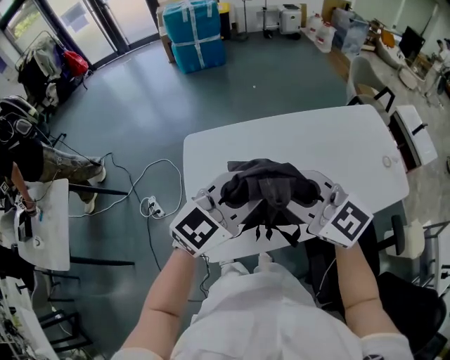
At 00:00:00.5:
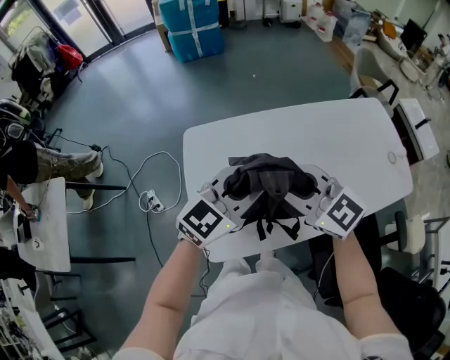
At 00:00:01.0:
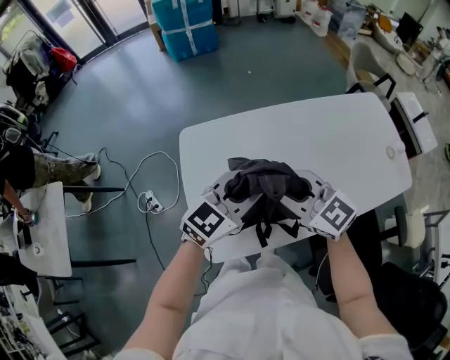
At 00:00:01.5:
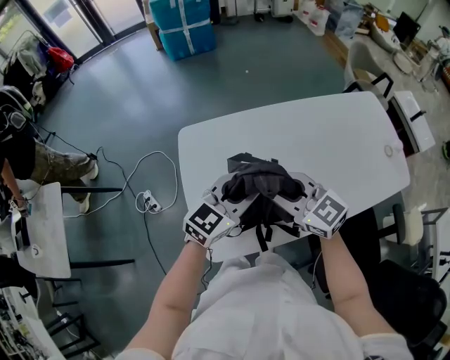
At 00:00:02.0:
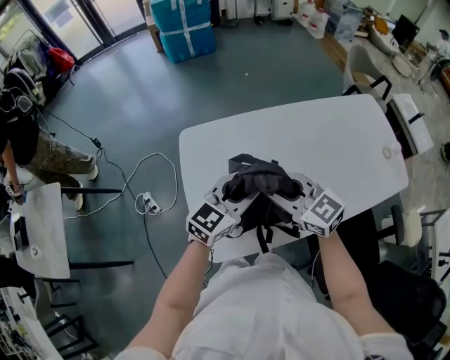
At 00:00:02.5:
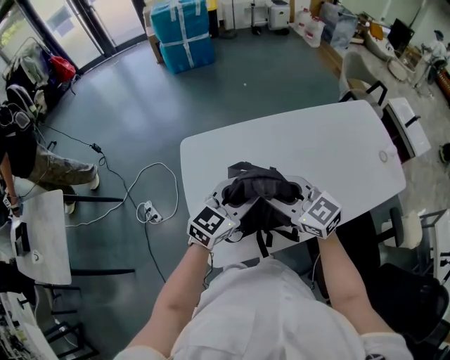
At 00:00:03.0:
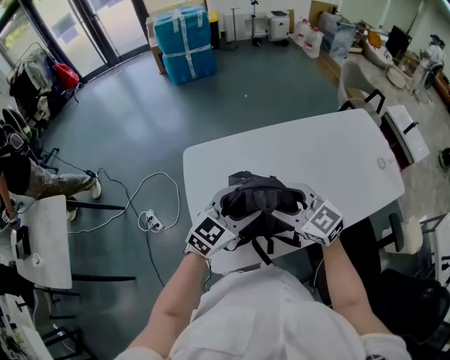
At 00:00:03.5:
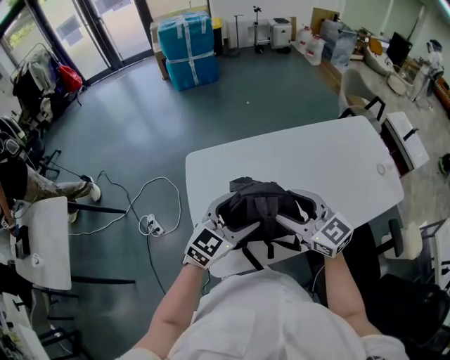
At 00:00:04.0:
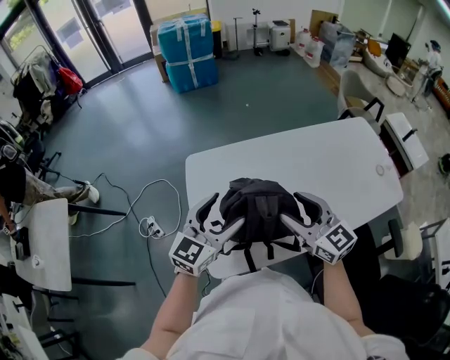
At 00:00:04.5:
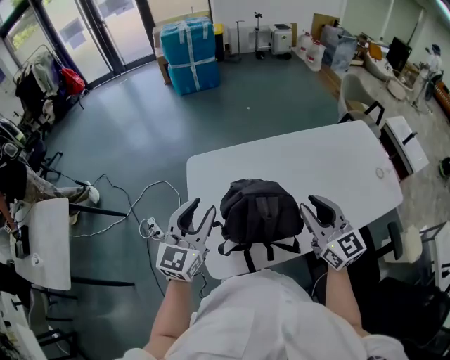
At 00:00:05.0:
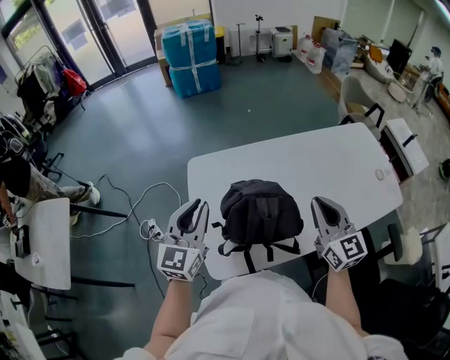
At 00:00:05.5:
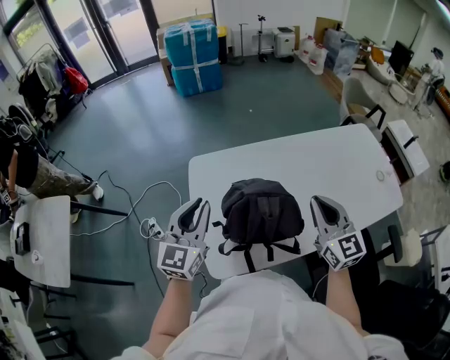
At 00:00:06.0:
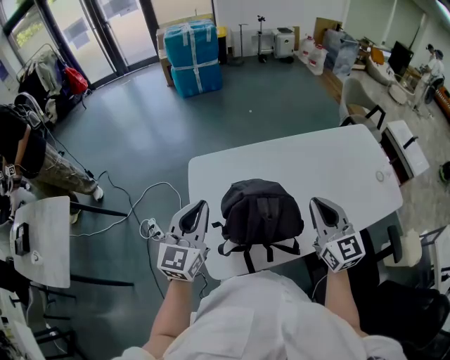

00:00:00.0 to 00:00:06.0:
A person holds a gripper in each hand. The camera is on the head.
00:00:00.0 to 00:00:02.0: Both grippers travel together downward, roughly 15 cm.
00:00:02.0 to 00:00:04.0: The left gripper goes about 5 cm to the left, and opens its fingers, while the right gripper goes approximately 5 cm to the right, and opens its fingers.
00:00:04.0 to 00:00:06.0: The left gripper goes about 5 cm to the left, and closes up. Meanwhile the right gripper shifts about 5 cm to the right, and closes its fingers.

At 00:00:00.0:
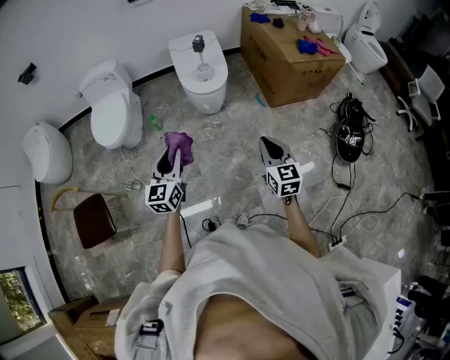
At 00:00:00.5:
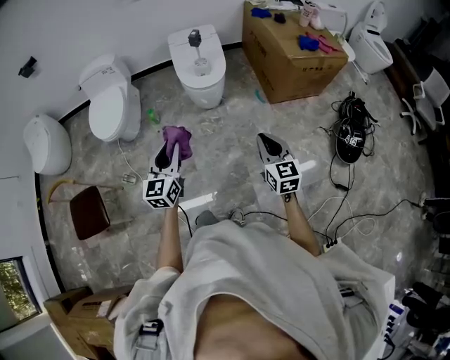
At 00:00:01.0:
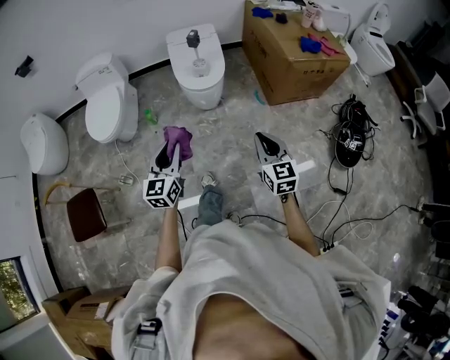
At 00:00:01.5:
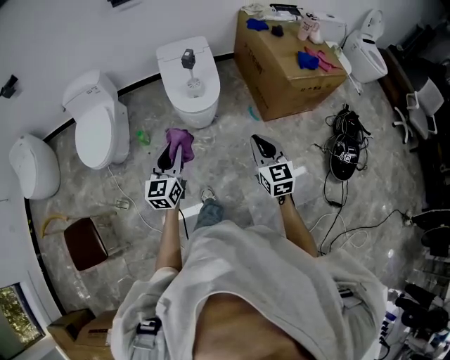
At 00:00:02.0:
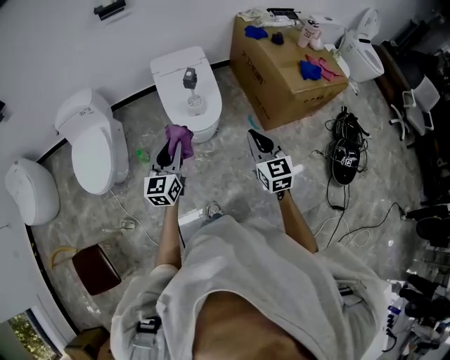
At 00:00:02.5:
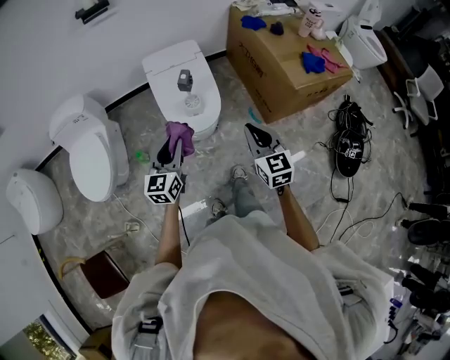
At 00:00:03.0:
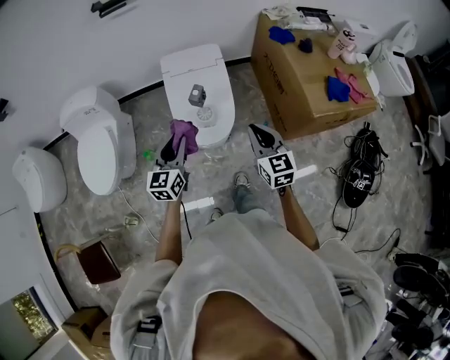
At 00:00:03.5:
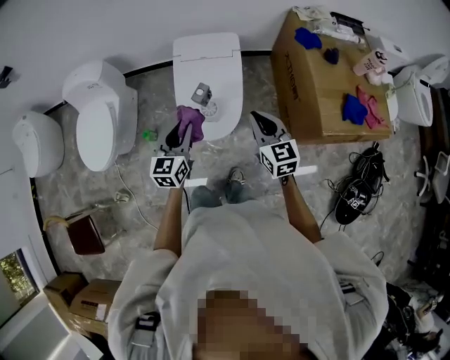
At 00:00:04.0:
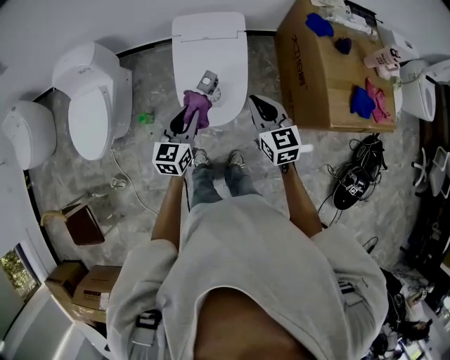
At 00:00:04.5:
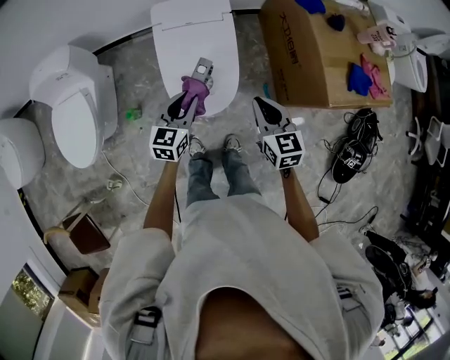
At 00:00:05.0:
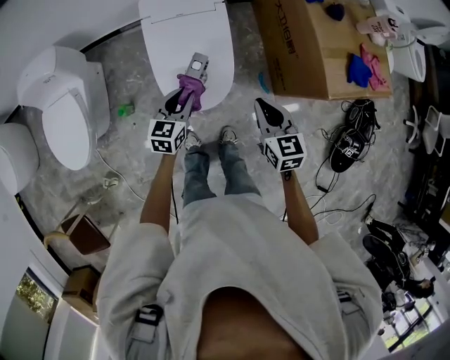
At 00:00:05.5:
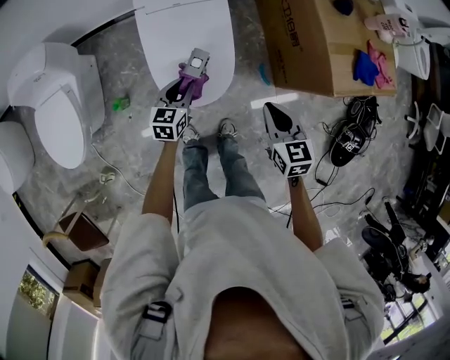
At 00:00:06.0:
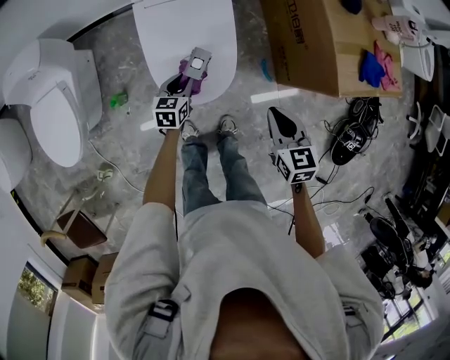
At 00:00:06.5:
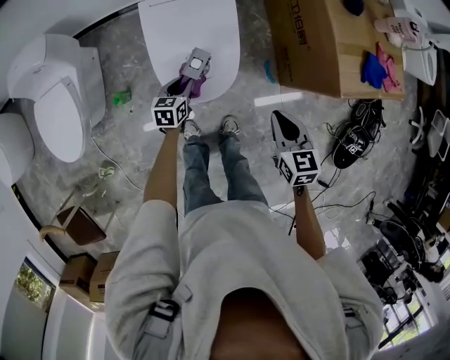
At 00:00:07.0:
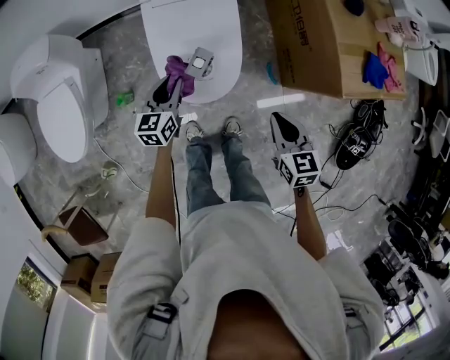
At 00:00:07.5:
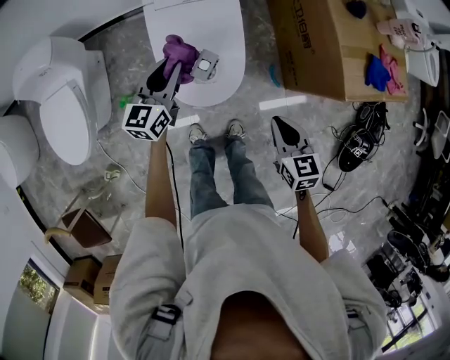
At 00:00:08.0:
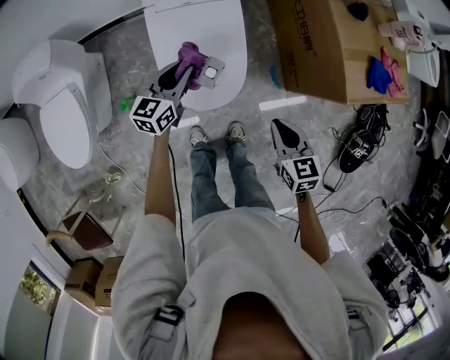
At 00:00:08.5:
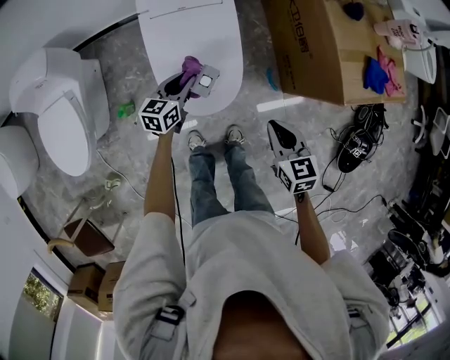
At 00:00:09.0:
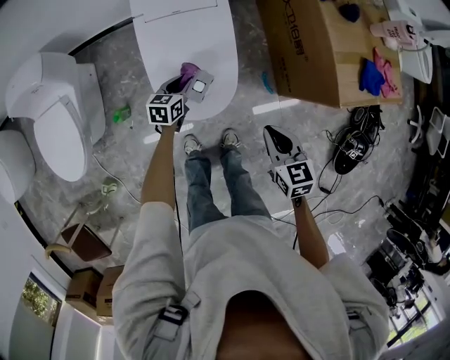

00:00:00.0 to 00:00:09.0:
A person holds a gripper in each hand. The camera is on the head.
00:00:00.0 to 00:00:02.0: Both grippers move forward, roughly 30 cm.
00:00:02.0 to 00:00:04.5: Both grippers move forward and downward, some 30 cm.
00:00:04.5 to 00:00:07.0: The left gripper goes approximately 10 cm downward; the right gripper heads downward and backward, covering some 10 cm.
00:00:07.0 to 00:00:09.0: The left gripper travels downward and forward by roughly 15 cm.

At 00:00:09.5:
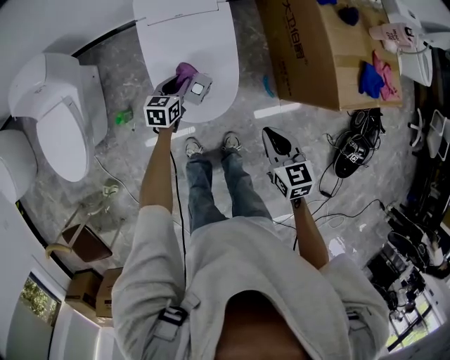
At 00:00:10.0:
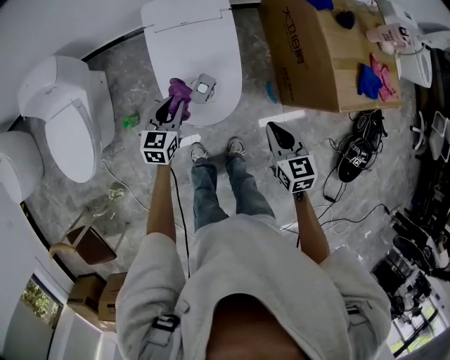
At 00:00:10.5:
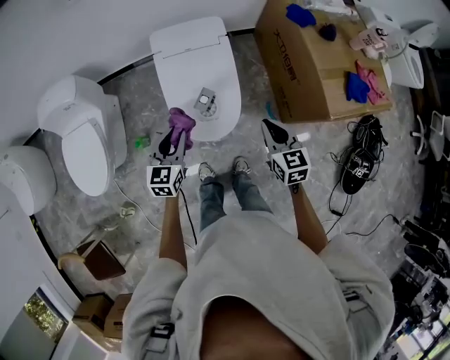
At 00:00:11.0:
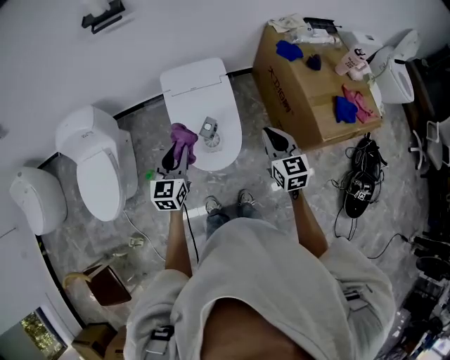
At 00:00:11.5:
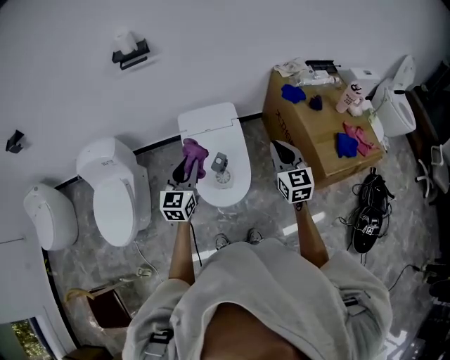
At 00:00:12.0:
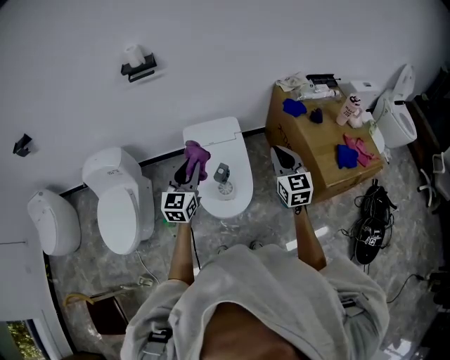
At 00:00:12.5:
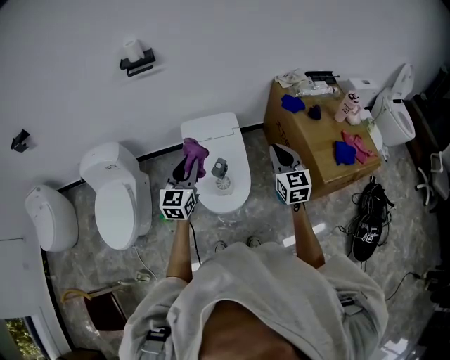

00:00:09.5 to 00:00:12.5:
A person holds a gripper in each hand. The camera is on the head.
00:00:09.5 to 00:00:11.0: The left gripper heads upward, covering about 30 cm, and changes its angle by roughly 30 degrees. Meanwhile the right gripper moves upward and forward, about 15 cm, and turns by approximately 20 degrees.
00:00:11.0 to 00:00:12.5: Both grippers travel together upward, roughly 10 cm.

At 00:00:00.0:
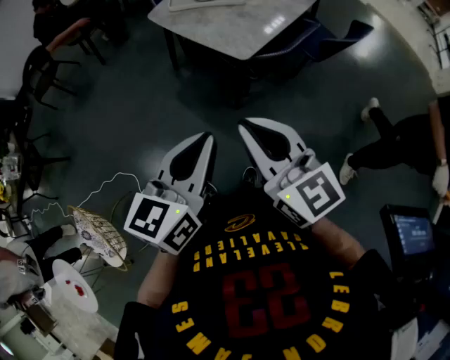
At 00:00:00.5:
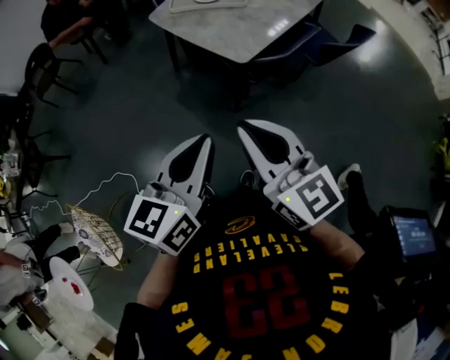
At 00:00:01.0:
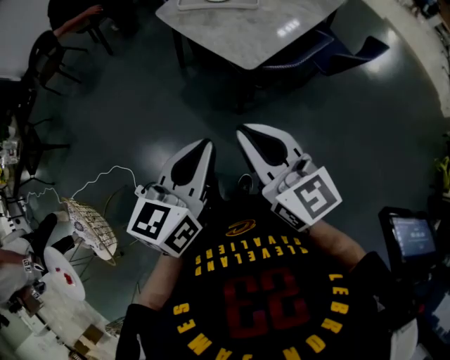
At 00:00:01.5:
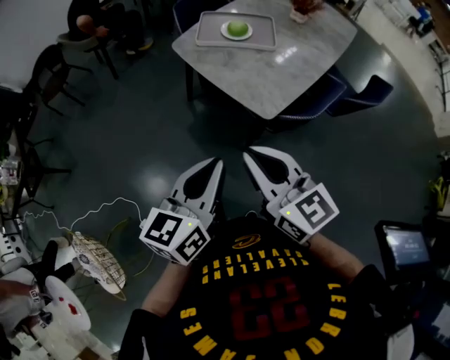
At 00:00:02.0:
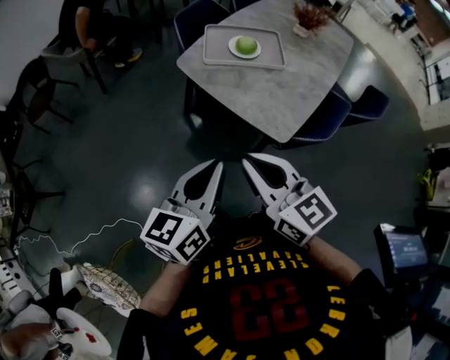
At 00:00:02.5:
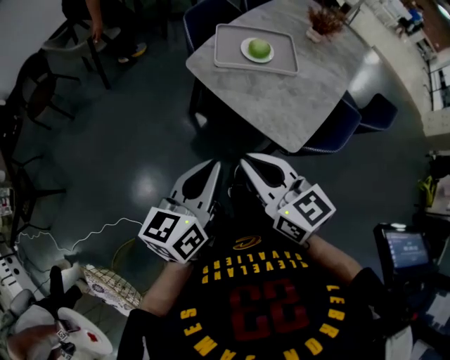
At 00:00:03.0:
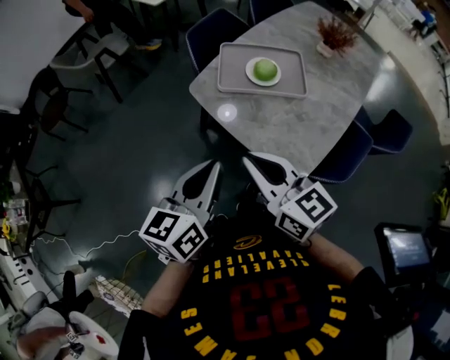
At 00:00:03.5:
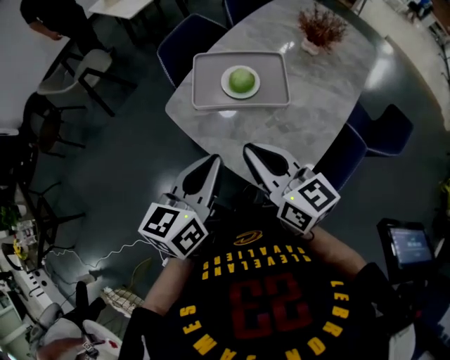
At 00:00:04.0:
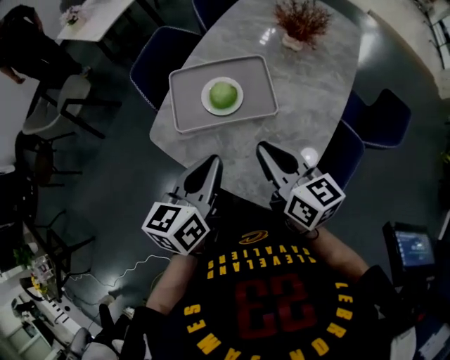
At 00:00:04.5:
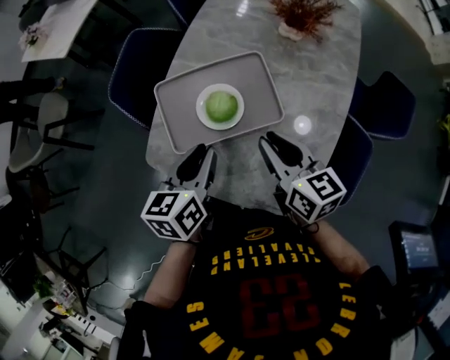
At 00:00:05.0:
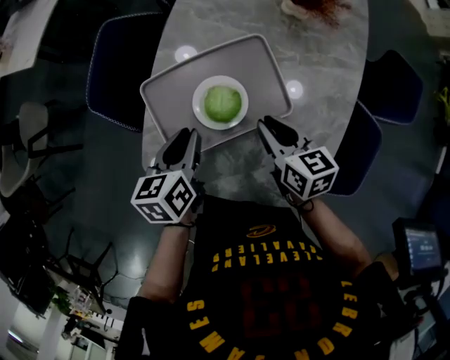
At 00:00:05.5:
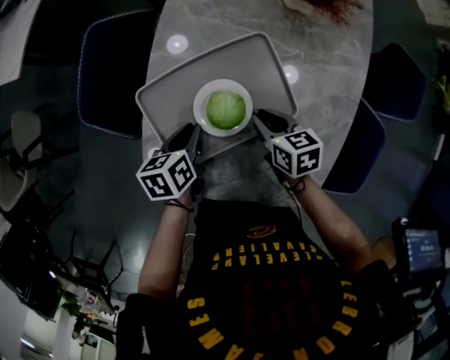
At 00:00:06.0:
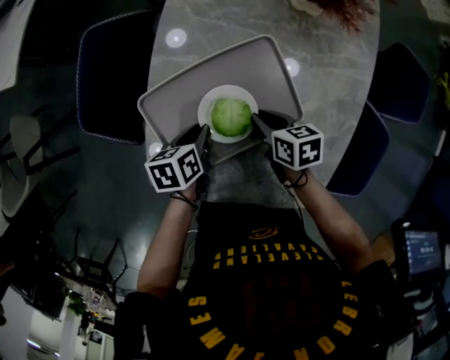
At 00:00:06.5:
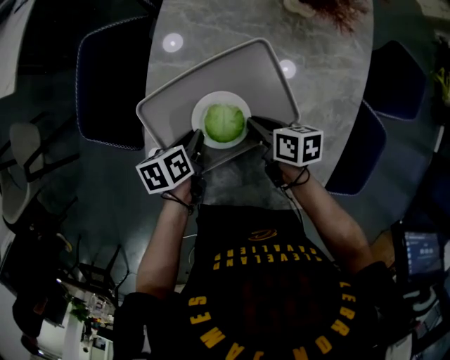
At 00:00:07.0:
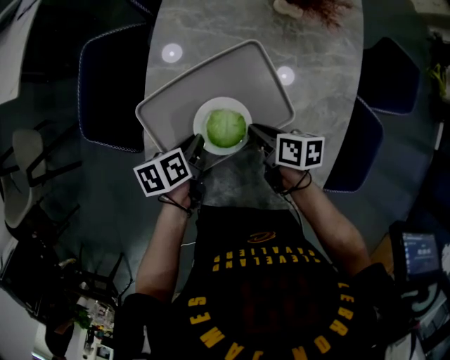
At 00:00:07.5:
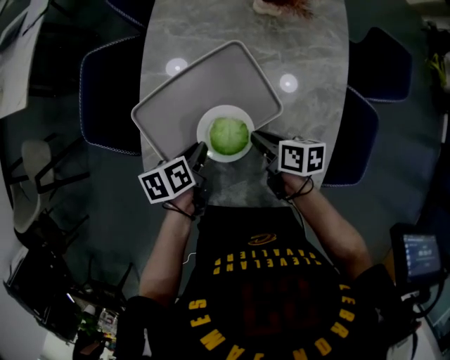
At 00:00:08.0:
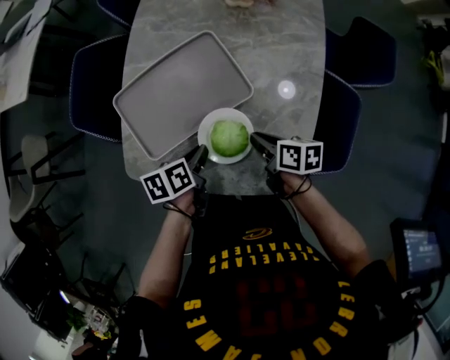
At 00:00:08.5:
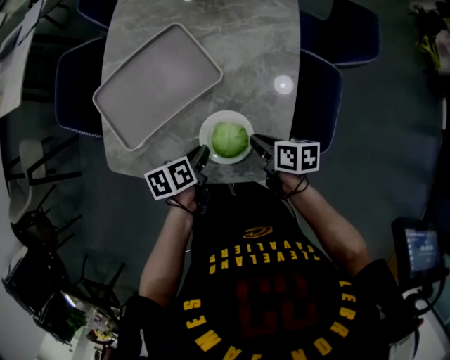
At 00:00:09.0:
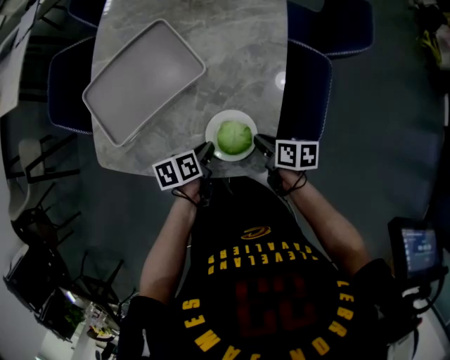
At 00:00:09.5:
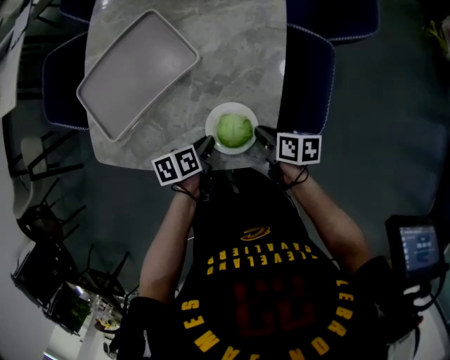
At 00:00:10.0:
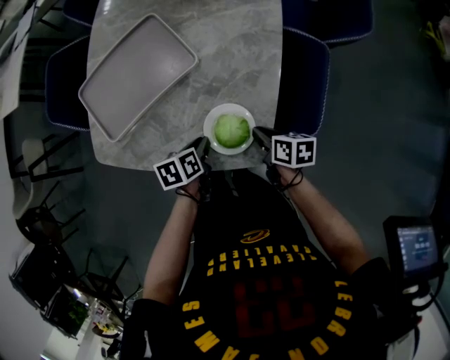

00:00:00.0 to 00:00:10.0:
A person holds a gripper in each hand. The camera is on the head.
00:00:00.0 to 00:00:02.0: The two grippers go some 25 cm forward and to the left.
00:00:02.0 to 00:00:04.0: The grippers both shift forward and to the right by some 35 cm. The right gripper swivels about 20 degrees.
00:00:04.0 to 00:00:06.0: Both grippers move downward and forward, roughly 30 cm. The left gripper tips its fingers downward by some 30 degrees, while the right gripper tips its fingers downward by about 40 degrees.
00:00:06.0 to 00:00:08.0: Both grippers move backward and to the right, roughly 15 cm. The right gripper rotates approximately 20 degrees.
00:00:08.0 to 00:00:10.0: Both grippers travel together to the right, backward and downward, about 15 cm.
